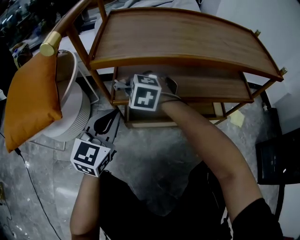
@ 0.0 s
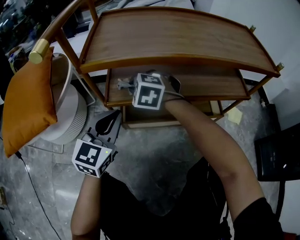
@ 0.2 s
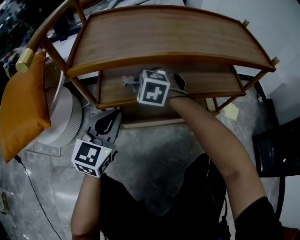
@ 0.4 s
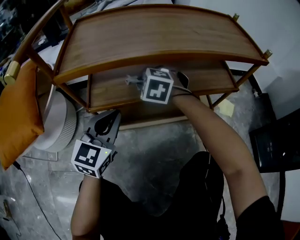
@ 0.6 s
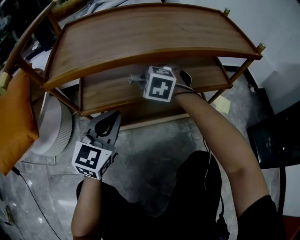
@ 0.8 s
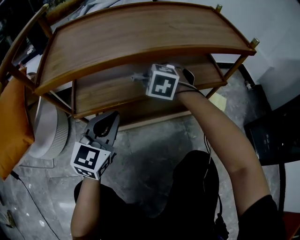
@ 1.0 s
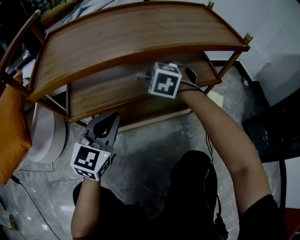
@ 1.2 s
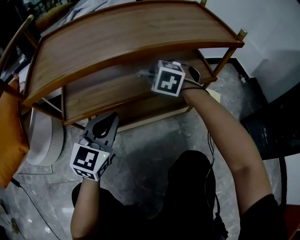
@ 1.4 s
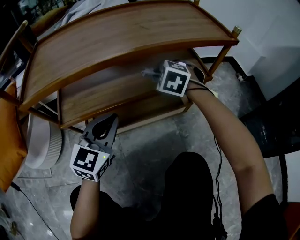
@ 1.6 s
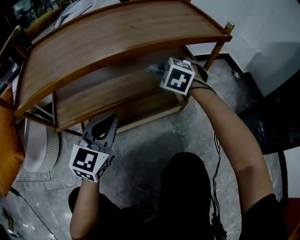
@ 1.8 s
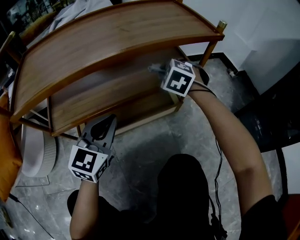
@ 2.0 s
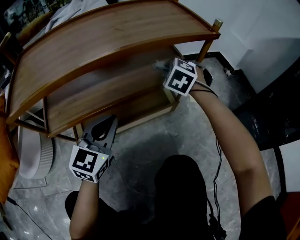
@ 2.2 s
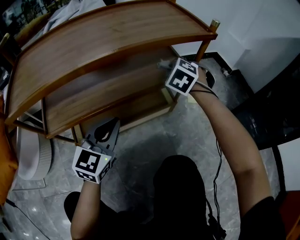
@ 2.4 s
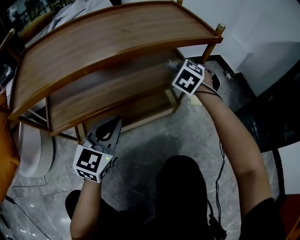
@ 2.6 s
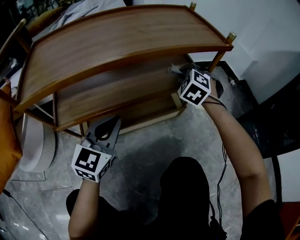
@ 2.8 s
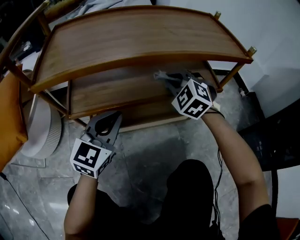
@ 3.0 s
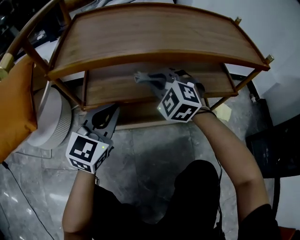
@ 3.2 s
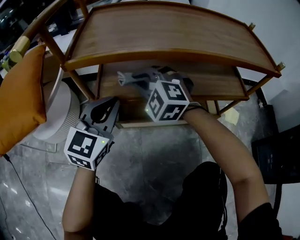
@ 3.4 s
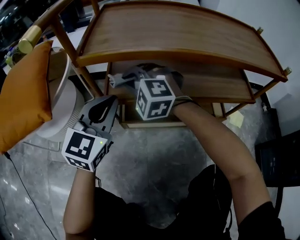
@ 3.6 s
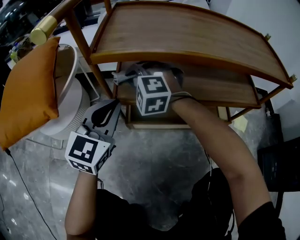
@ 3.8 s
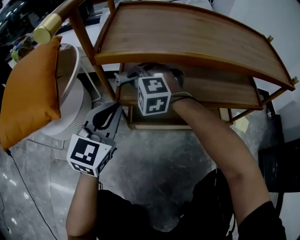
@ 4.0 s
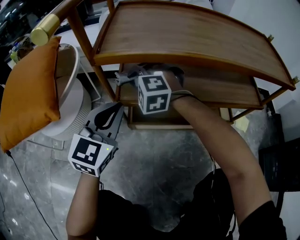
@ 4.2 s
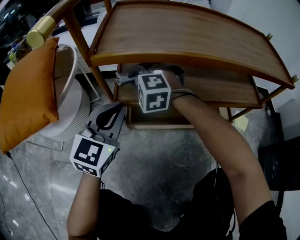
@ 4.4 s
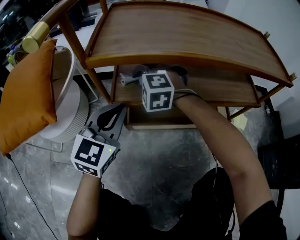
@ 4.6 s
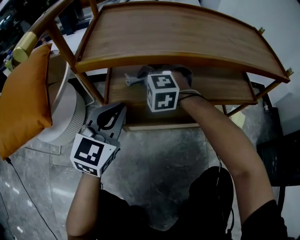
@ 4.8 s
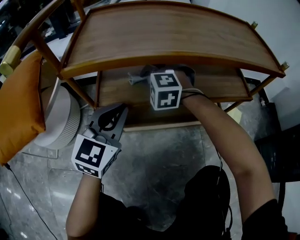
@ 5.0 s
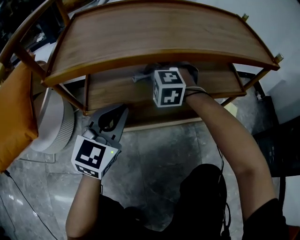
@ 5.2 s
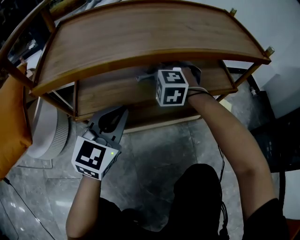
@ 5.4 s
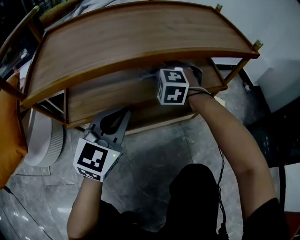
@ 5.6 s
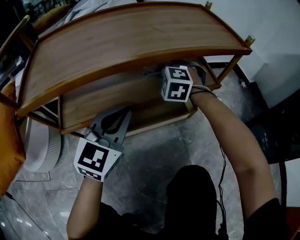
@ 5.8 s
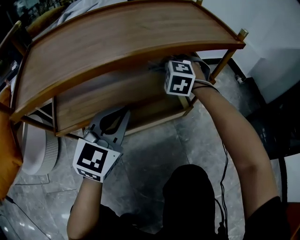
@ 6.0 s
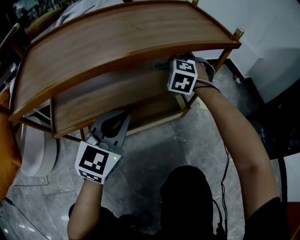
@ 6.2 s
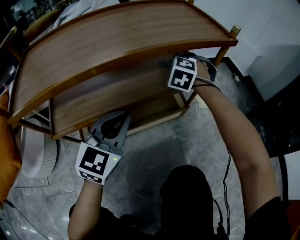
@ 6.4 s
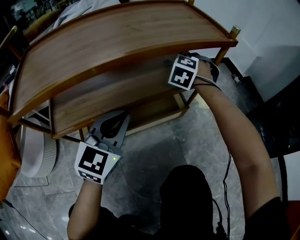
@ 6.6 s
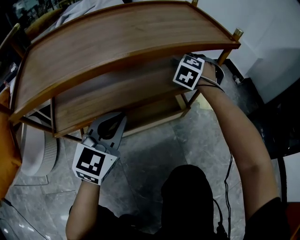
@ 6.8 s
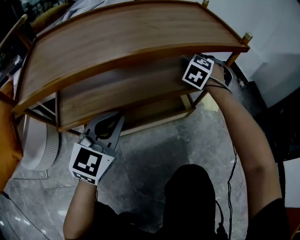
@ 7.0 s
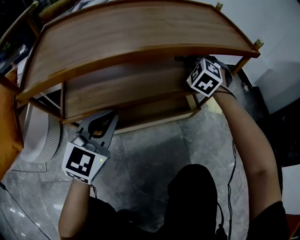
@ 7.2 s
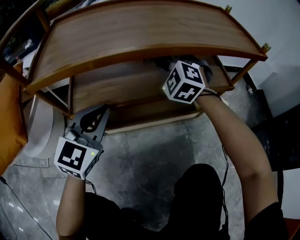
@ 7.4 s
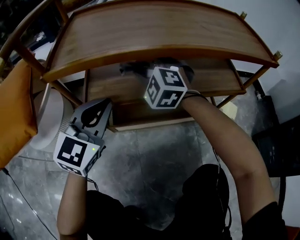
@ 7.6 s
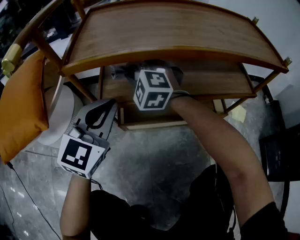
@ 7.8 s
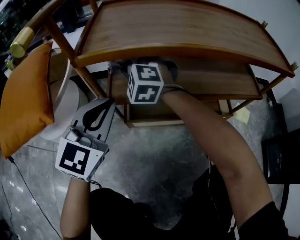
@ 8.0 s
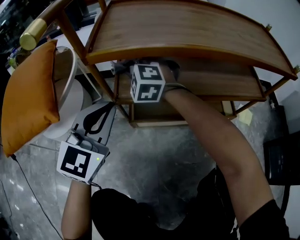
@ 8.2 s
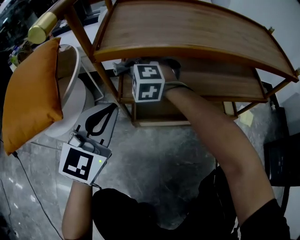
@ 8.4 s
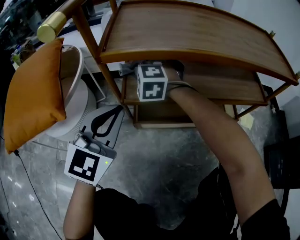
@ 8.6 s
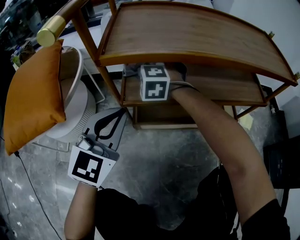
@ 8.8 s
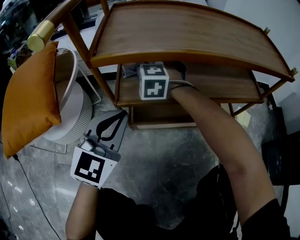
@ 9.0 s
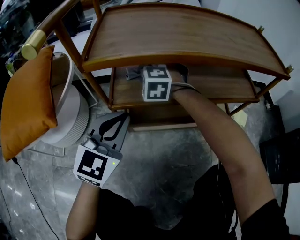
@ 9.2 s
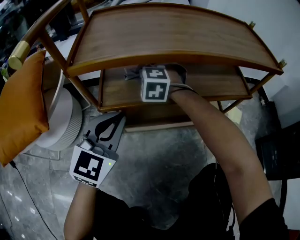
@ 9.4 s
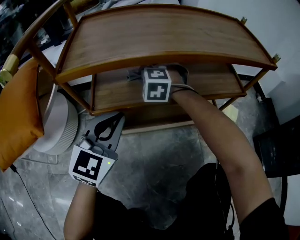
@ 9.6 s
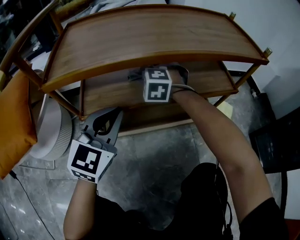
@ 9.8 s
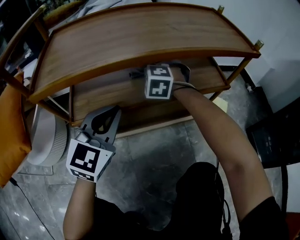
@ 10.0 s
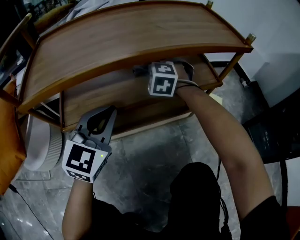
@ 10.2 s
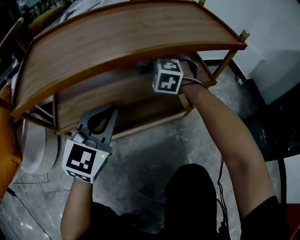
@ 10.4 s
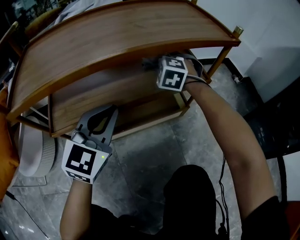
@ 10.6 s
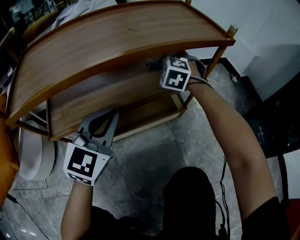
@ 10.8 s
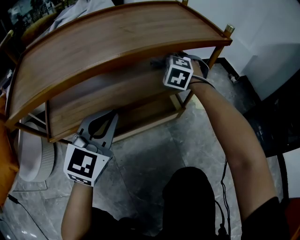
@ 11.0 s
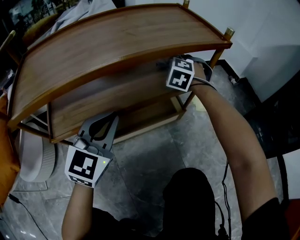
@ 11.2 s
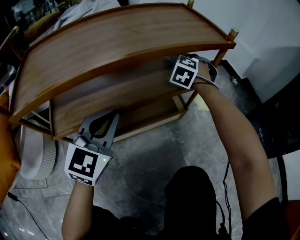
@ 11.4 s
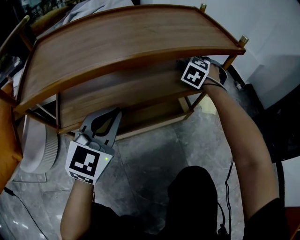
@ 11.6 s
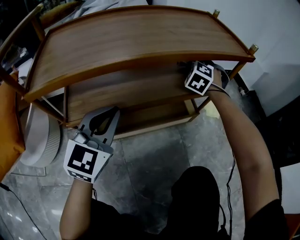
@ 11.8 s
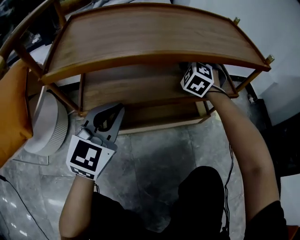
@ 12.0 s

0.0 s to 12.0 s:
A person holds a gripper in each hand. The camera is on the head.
0.0 to 1.6 s: The right gripper heads to the right, covering some 35 cm, and changes its angle by approximately 30 degrees. The left gripper shifts about 20 cm to the right.
1.6 to 3.0 s: The left gripper moves roughly 5 cm to the right and comes back. The right gripper moves some 15 cm to the right and comes back.
3.0 to 4.4 s: The left gripper moves to the left, approximately 15 cm, while the right gripper travels to the left by about 35 cm, and rotates approximately 40 degrees.
4.4 to 6.0 s: The left gripper shifts by some 25 cm, and turns by approximately 20 degrees. Meanwhile the right gripper moves approximately 40 cm, and turns by about 40 degrees.
6.0 to 7.6 s: The left gripper shifts by roughly 15 cm. The right gripper ends up some 25 cm from where it was, and rotates about 30 degrees.
7.6 to 9.0 s: The right gripper is displaced to the left and downward by approximately 15 cm. Meanwhile the left gripper heads to the left, covering about 5 cm.
9.0 to 10.4 s: The right gripper heads to the right, covering roughly 35 cm, and rotates about 20 degrees. The left gripper moves to the right, roughly 20 cm.
10.4 to 12.0 s: The right gripper reaches approximately 15 cm to the right, then returns, while the left gripper is displaced to the left by approximately 5 cm.

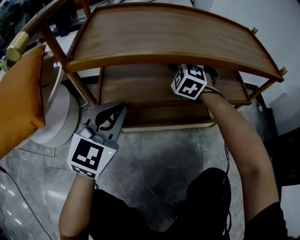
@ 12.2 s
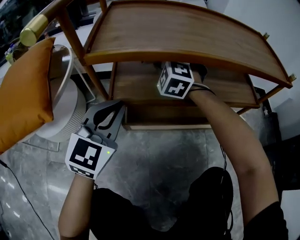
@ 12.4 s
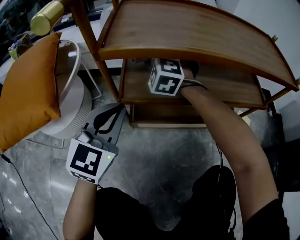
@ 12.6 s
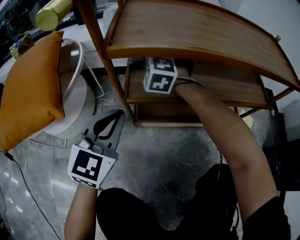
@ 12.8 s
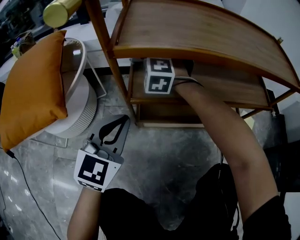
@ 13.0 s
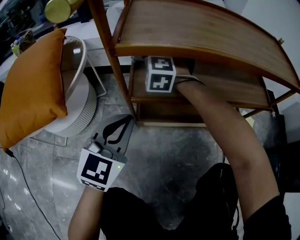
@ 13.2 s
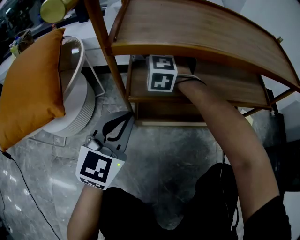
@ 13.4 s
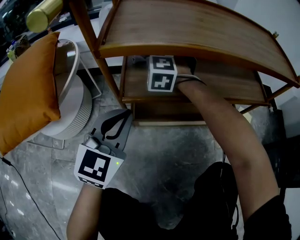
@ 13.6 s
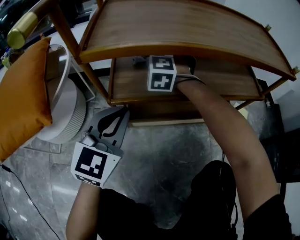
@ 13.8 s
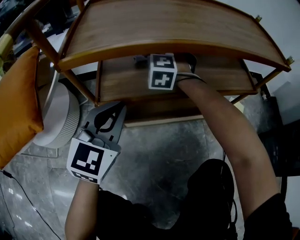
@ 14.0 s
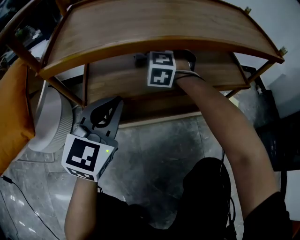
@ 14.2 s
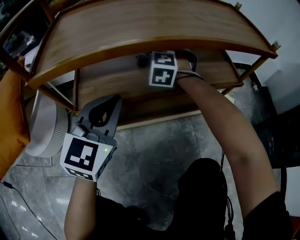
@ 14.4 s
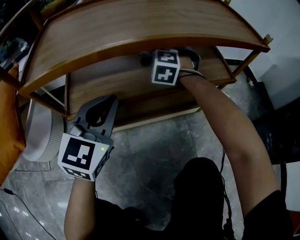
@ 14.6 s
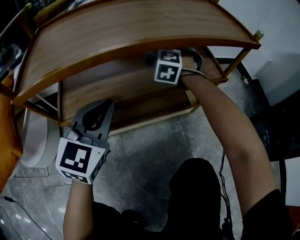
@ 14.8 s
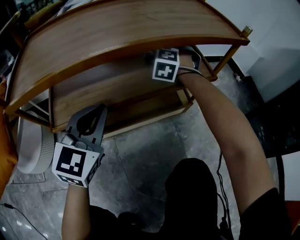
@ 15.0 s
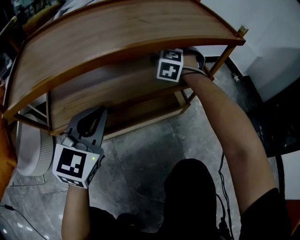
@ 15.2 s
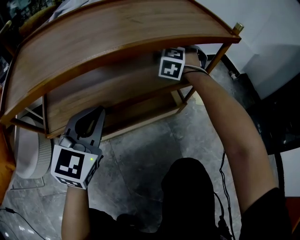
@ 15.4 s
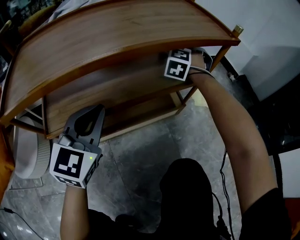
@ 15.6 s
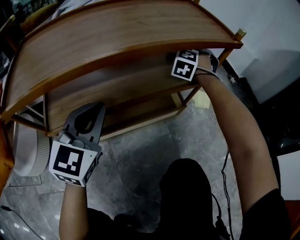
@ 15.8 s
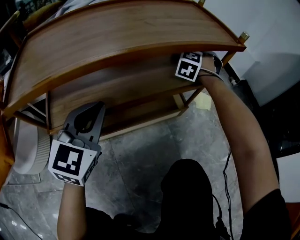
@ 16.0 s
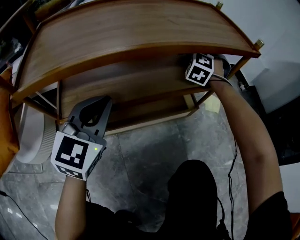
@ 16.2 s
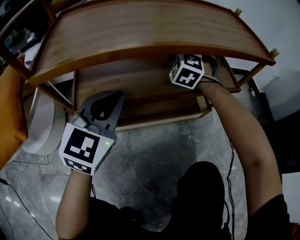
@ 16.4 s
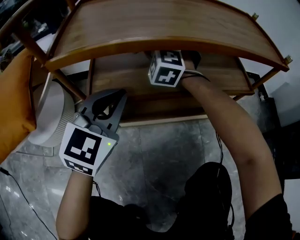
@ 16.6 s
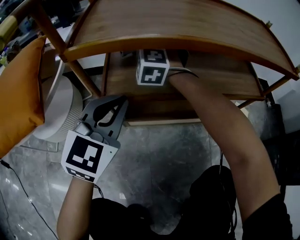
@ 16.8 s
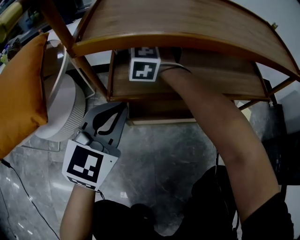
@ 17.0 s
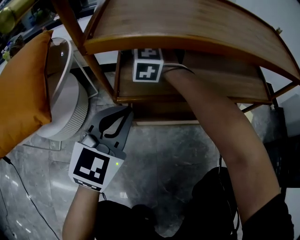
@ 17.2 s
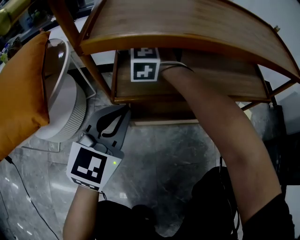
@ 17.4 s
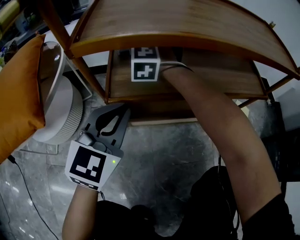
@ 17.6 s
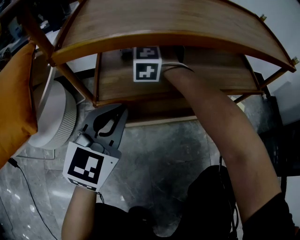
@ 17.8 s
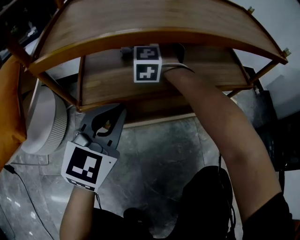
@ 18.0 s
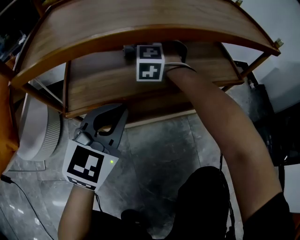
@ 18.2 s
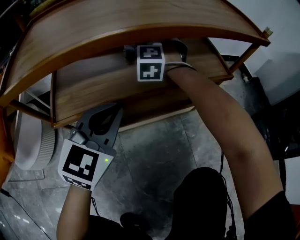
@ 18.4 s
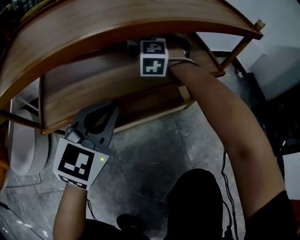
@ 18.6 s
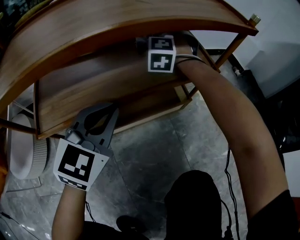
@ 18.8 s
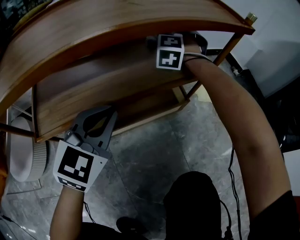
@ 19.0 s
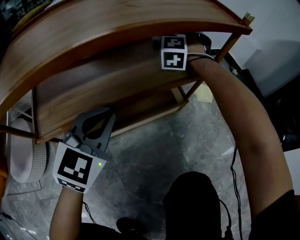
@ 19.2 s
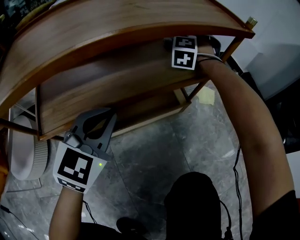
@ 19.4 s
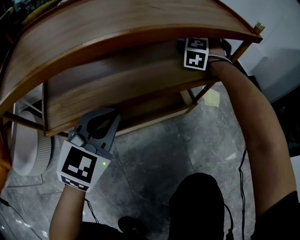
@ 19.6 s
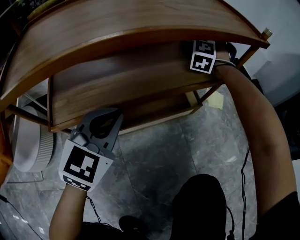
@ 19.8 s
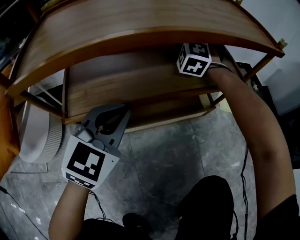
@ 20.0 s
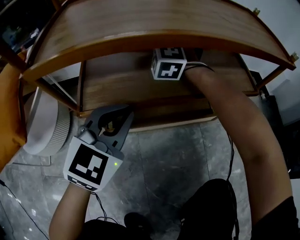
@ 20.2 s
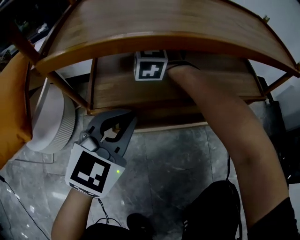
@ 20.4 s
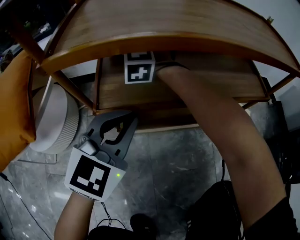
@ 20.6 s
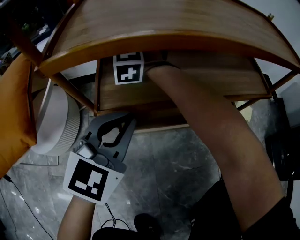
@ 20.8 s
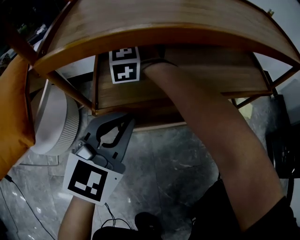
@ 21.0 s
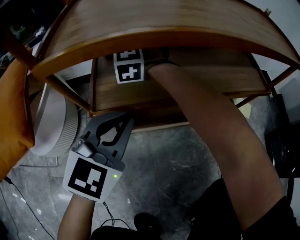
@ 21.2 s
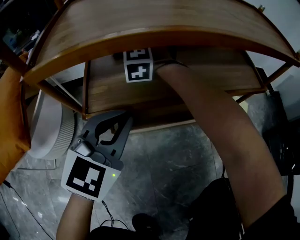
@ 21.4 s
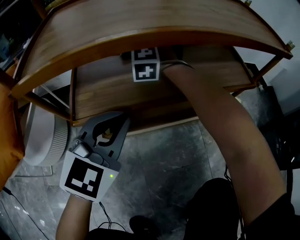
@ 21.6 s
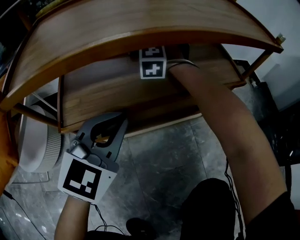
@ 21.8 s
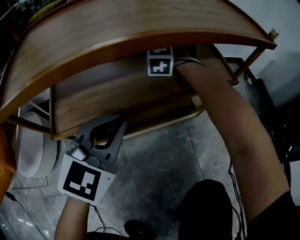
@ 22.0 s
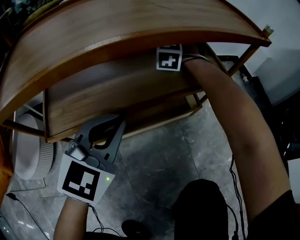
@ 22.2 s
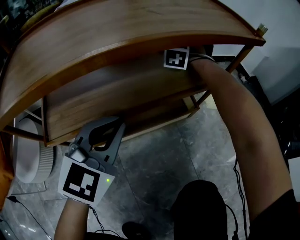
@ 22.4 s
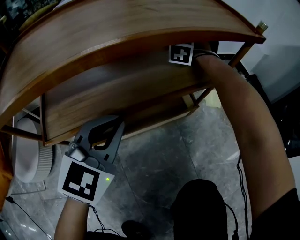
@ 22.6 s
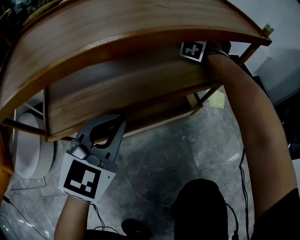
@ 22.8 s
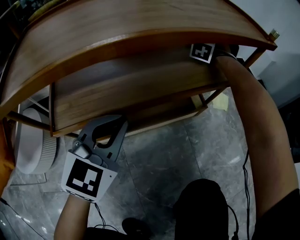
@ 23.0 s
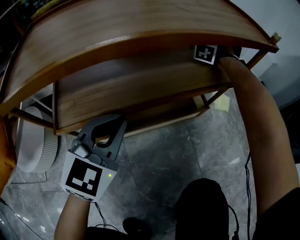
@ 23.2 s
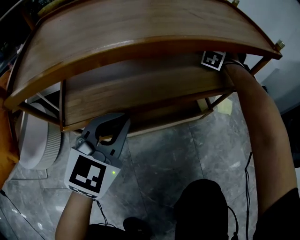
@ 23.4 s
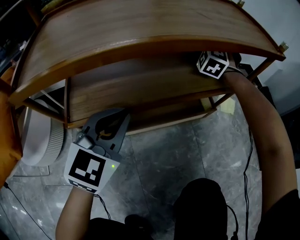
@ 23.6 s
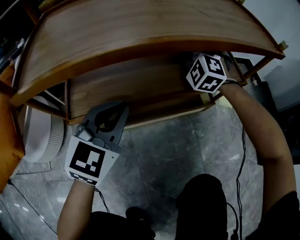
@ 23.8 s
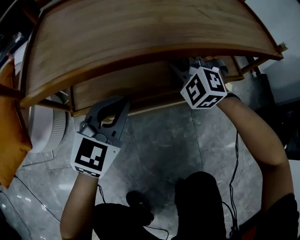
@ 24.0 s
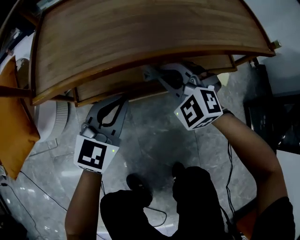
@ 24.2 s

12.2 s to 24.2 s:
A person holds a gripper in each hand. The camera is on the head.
12.2 to 13.8 s: The right gripper heads to the left, covering about 15 cm.
13.8 to 15.2 s: The right gripper shifts approximately 35 cm to the right, and changes its angle by approximately 30 degrees. The left gripper goes about 15 cm to the right and forward.
15.2 to 16.6 s: The left gripper ends up some 10 cm from where it was. The right gripper ends up some 30 cm from where it was, and swivels about 30 degrees.
16.6 to 18.2 s: The right gripper reaches roughly 15 cm to the left, then returns. The left gripper goes about 5 cm to the right.
18.2 to 19.8 s: The right gripper moves to the right and forward, some 30 cm, and changes its angle by about 30 degrees.
19.8 to 21.2 s: The left gripper ends up roughly 15 cm from where it was; the right gripper shifts by about 50 cm, and turns by some 40 degrees.
21.2 to 22.6 s: The right gripper changes place by roughly 50 cm, and changes its angle by roughly 40 degrees. Meanwhile the left gripper ends up about 15 cm from where it was.
22.6 to 24.2 s: The left gripper shifts by about 10 cm; the right gripper ends up about 35 cm from where it was, and swivels roughly 50 degrees.
